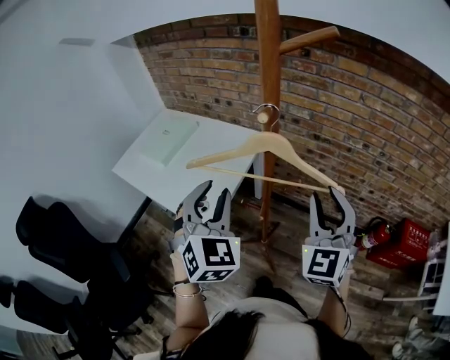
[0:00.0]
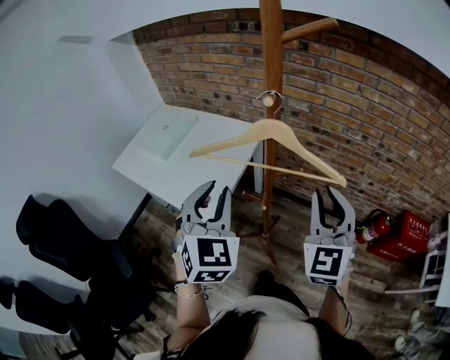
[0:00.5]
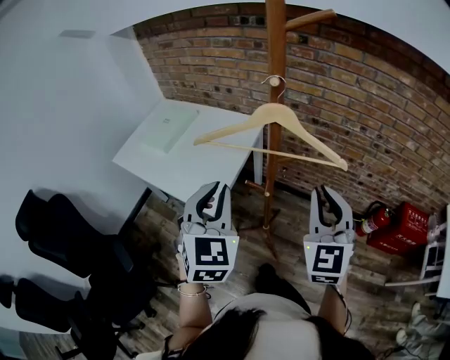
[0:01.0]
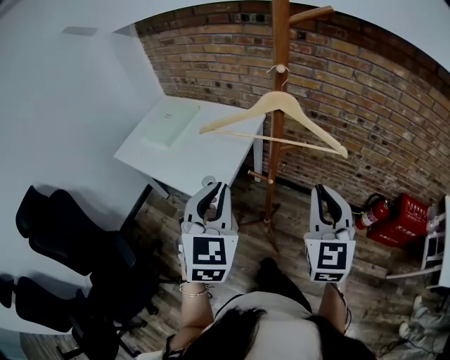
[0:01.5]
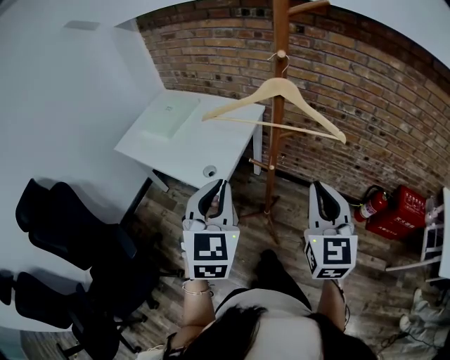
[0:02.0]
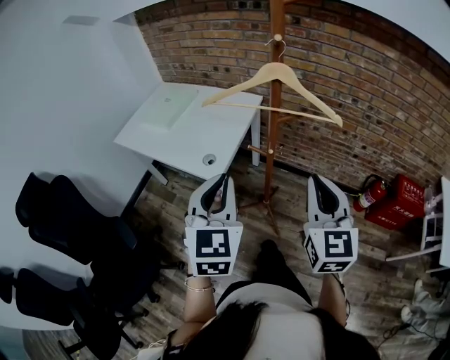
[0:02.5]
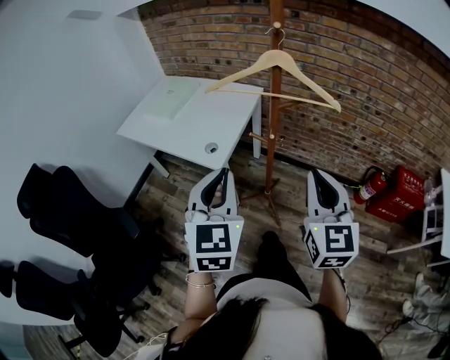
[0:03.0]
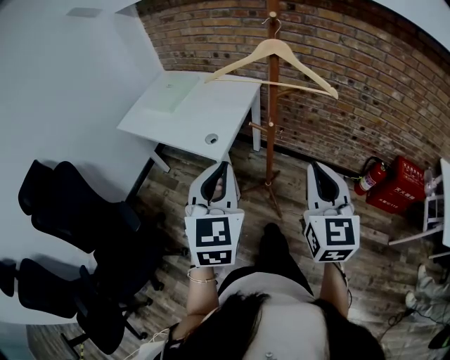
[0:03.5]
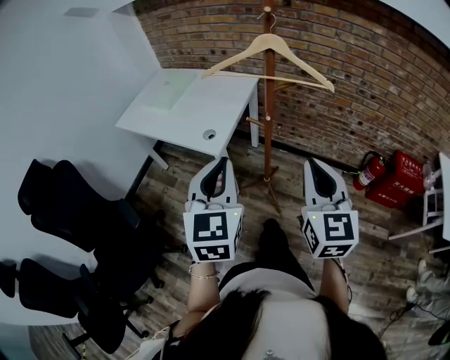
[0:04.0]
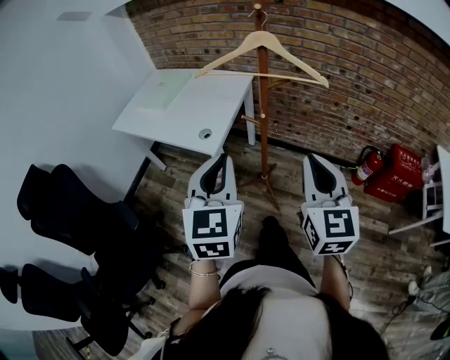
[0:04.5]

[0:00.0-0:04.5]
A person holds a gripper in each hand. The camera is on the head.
0:00.0 to 0:02.0: Both grippers travel together backward, approximately 15 cm. The left gripper turns by approximately 20 degrees, and closes; the right gripper rotates roughly 20 degrees, and closes its fingers.
0:02.0 to 0:04.5: The grippers both shift backward by some 10 cm.

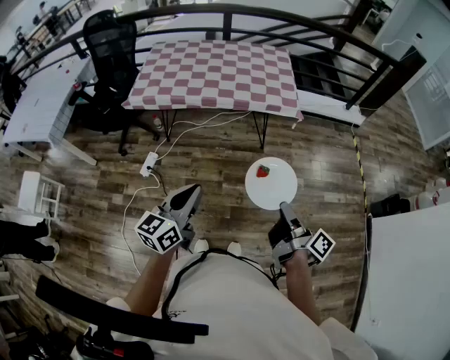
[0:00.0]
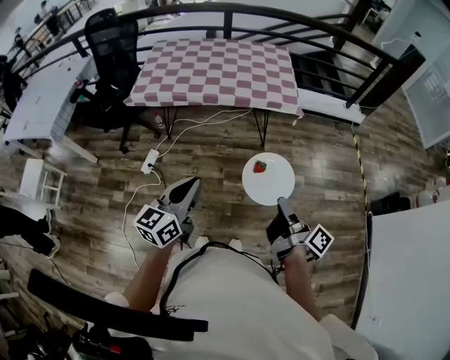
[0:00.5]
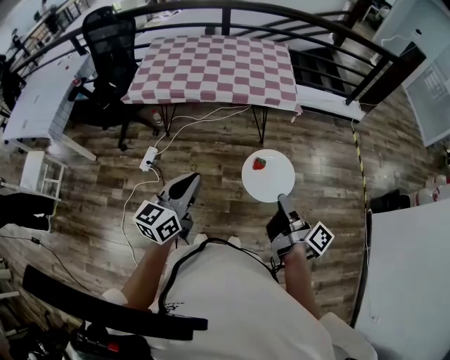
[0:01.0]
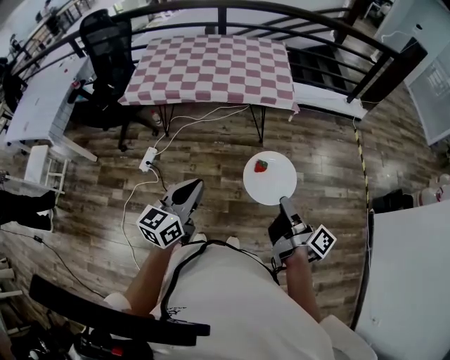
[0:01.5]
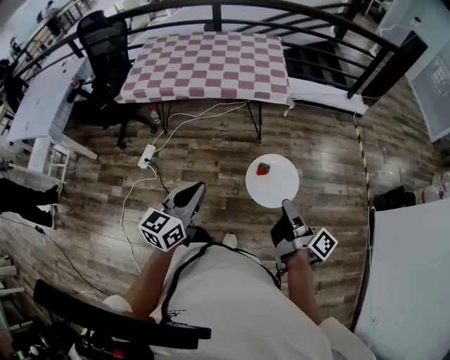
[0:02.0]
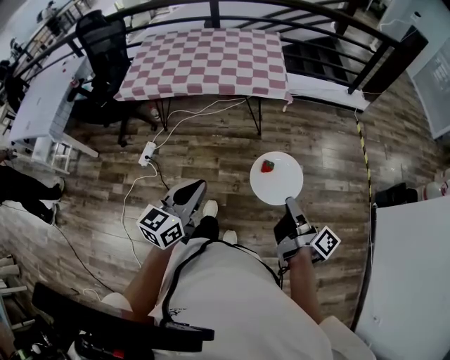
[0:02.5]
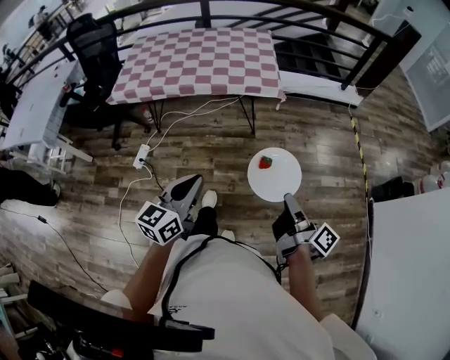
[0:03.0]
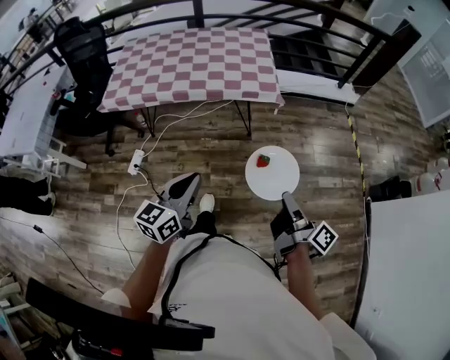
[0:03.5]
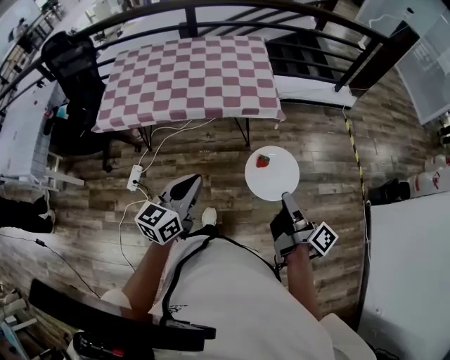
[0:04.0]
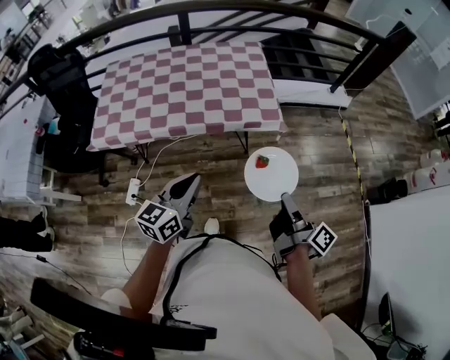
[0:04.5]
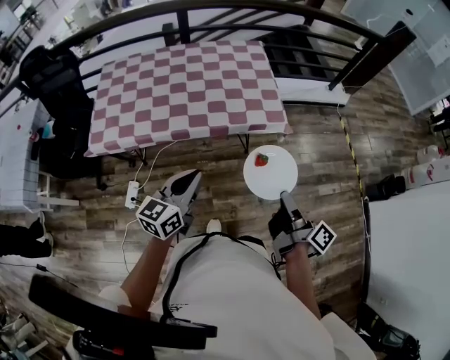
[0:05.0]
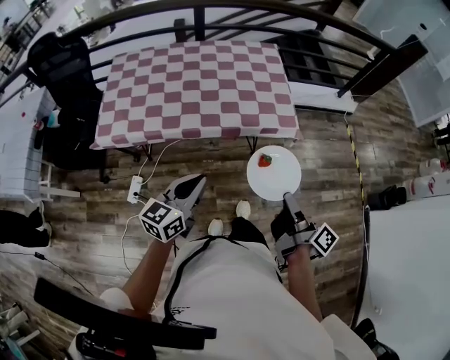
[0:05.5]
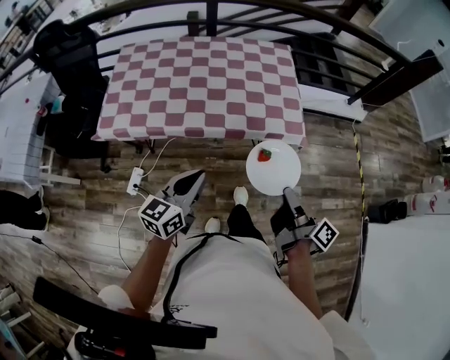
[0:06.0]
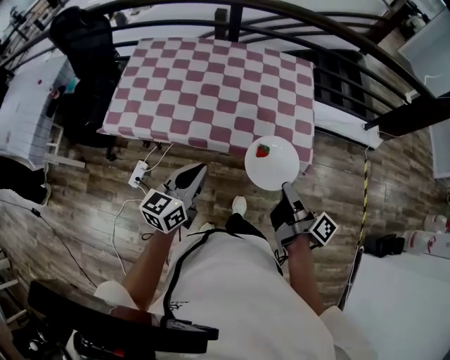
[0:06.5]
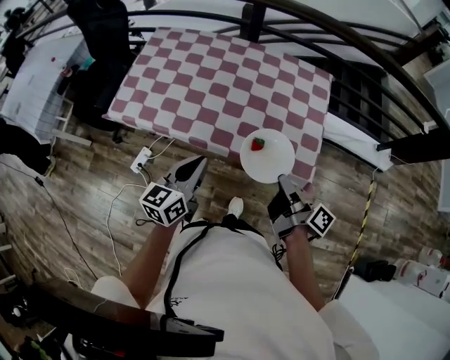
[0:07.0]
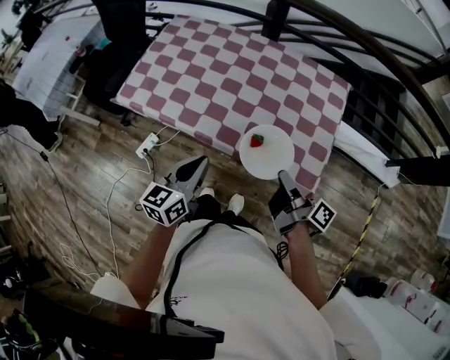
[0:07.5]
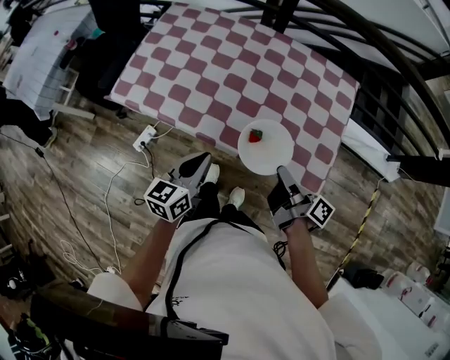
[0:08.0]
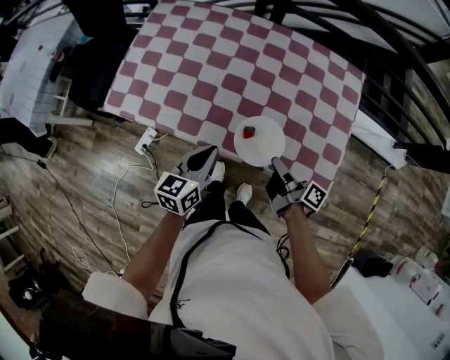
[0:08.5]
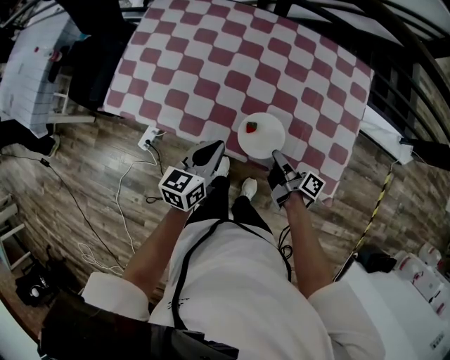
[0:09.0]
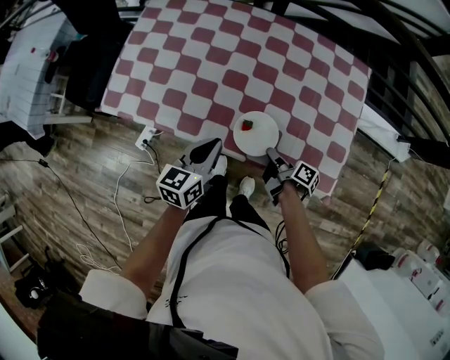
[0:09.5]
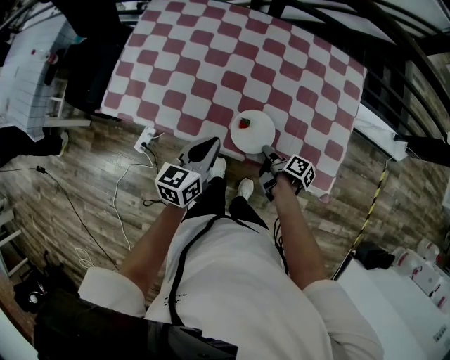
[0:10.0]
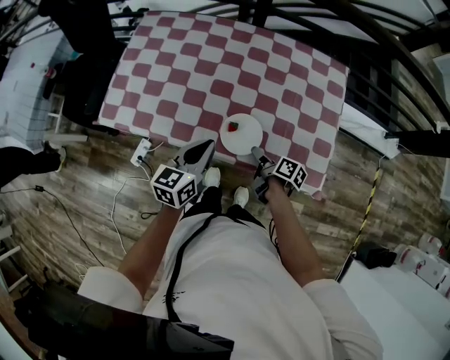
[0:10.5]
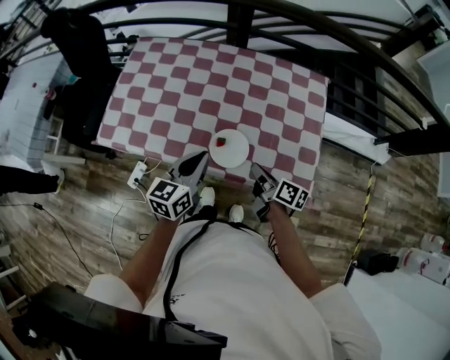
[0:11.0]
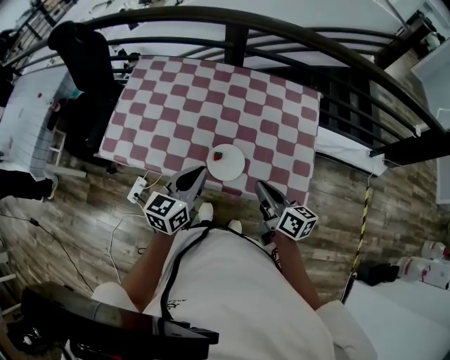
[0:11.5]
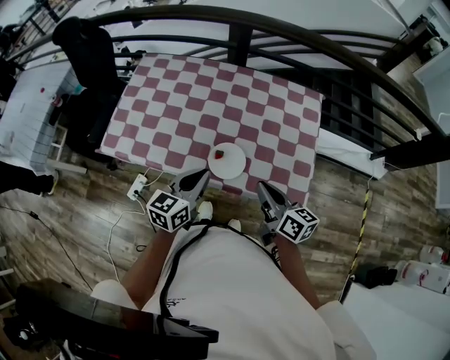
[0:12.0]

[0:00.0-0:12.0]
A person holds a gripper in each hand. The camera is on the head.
0:00.0 to 0:02.0: The left gripper ends up approximately 10 cm from where it was.
0:02.0 to 0:04.0: The left gripper moves approximately 20 cm.
0:04.0 to 0:06.0: The left gripper ends up some 20 cm from where it was.
0:06.0 to 0:08.0: The left gripper shifts by some 20 cm, and rotates approximately 30 degrees.
0:08.0 to 0:10.0: The left gripper changes place by about 10 cm.
0:10.0 to 0:12.0: The left gripper goes about 10 cm upward.

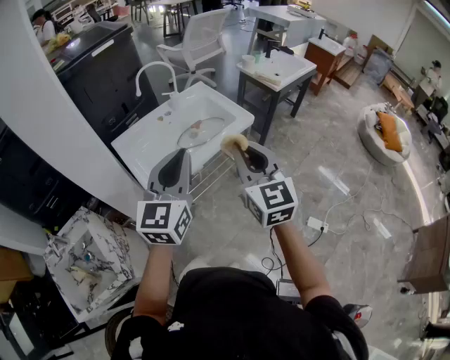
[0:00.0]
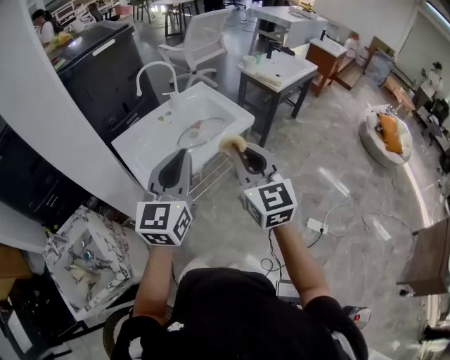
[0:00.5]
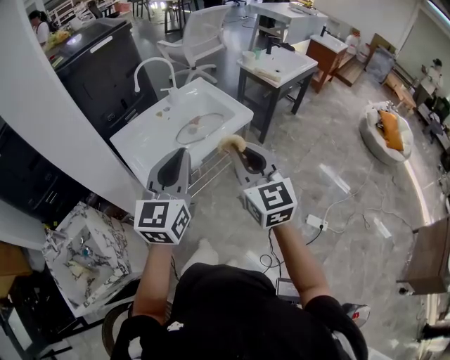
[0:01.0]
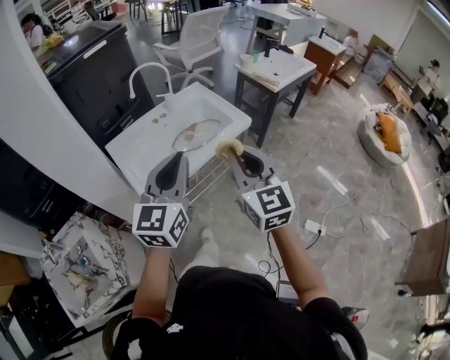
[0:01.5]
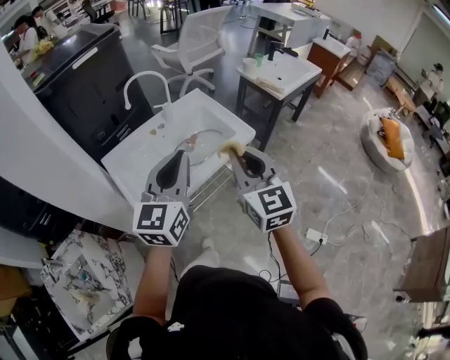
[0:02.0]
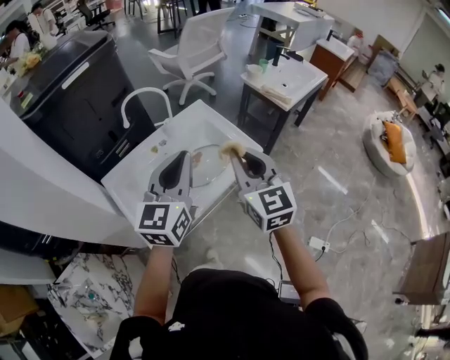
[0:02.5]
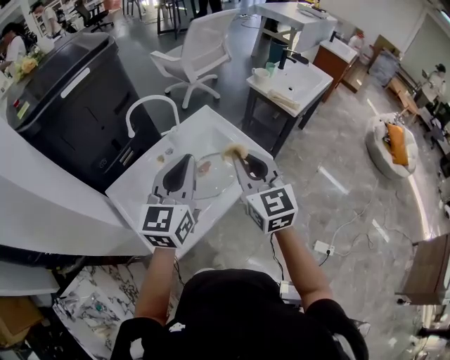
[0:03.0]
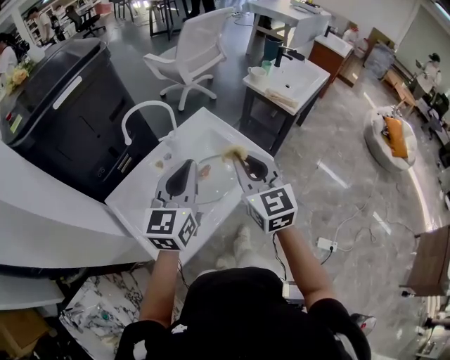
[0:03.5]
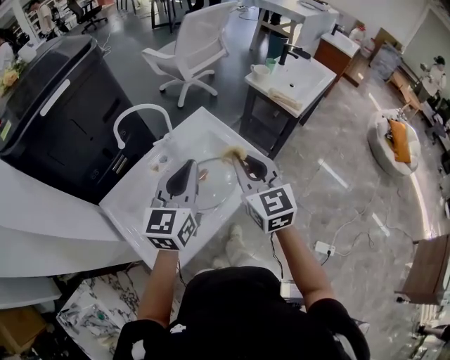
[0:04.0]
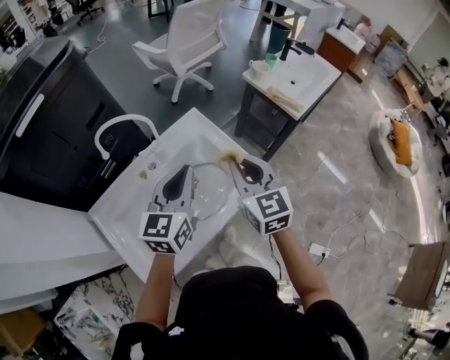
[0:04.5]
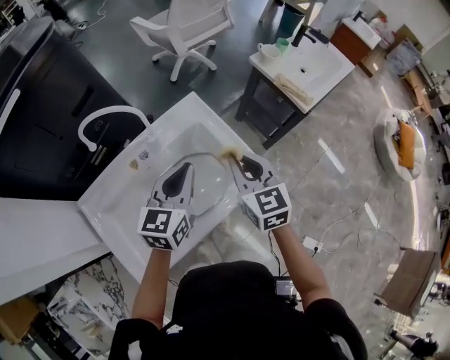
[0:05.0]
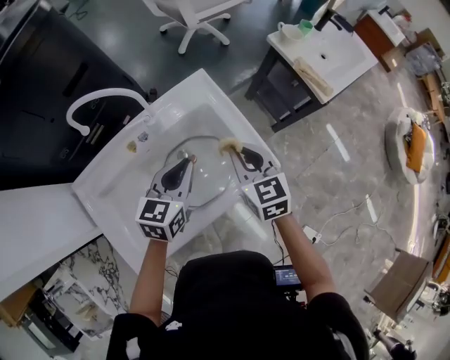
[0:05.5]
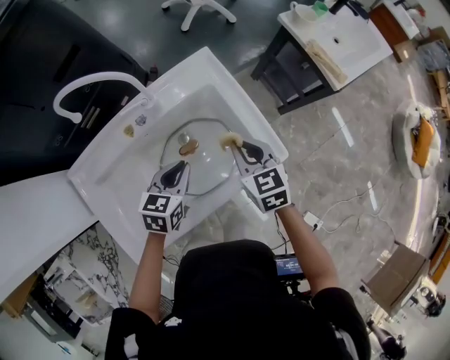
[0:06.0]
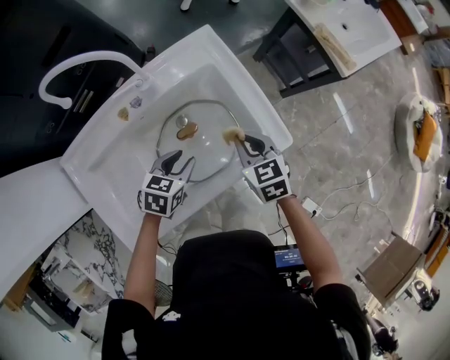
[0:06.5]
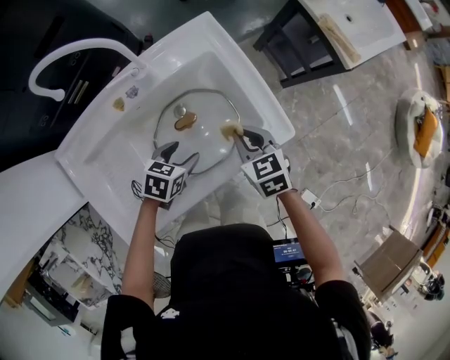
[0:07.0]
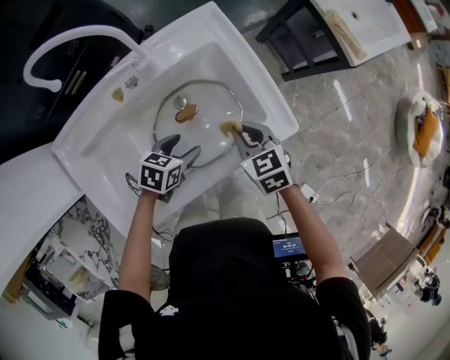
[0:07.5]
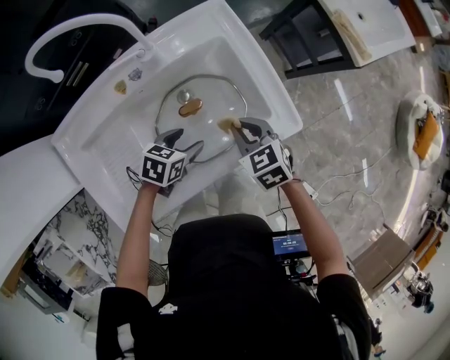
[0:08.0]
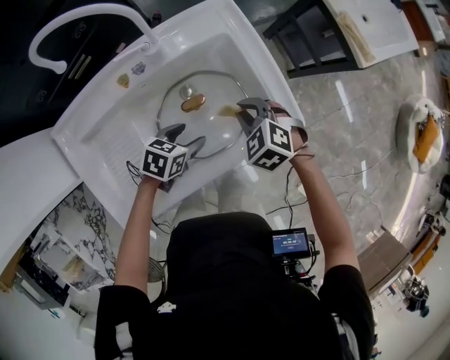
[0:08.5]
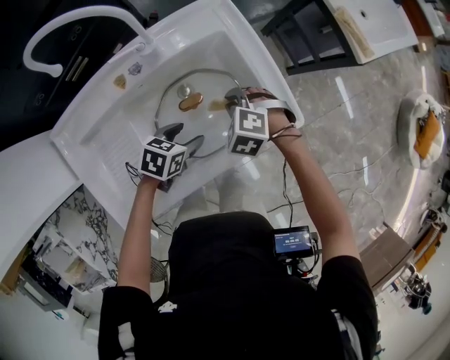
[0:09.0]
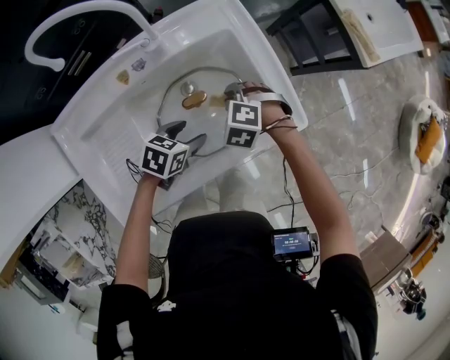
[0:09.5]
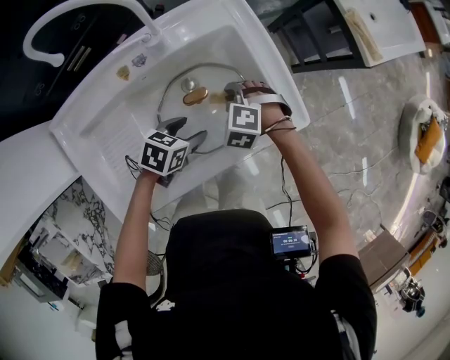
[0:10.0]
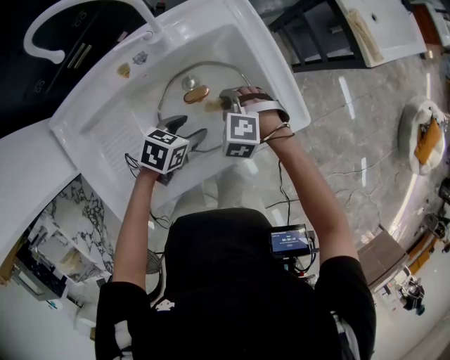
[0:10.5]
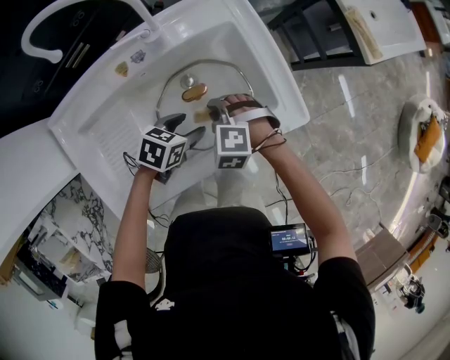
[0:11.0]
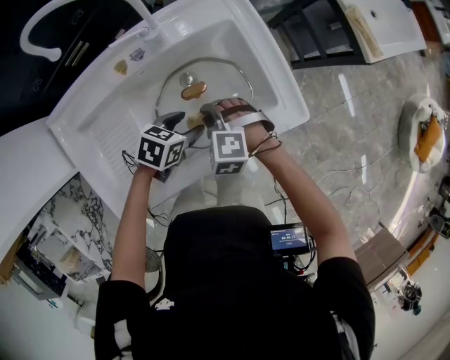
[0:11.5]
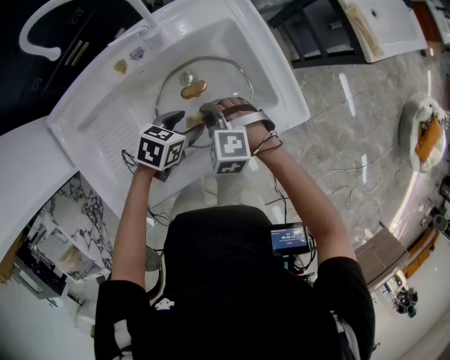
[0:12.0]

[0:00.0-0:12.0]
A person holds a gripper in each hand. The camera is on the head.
0:00.0 to 0:02.0: Both grippers move forward, roughly 15 cm.
0:02.0 to 0:04.0: The grippers both shift forward by roughly 25 cm.
0:04.0 to 0:06.0: The right gripper is displaced downward and forward by about 30 cm, and swivels about 30 degrees, while the left gripper shifts approximately 30 cm downward, and points its fingers roughly 40 degrees further downward.
0:06.0 to 0:08.0: Both grippers move downward, about 10 cm. The right gripper turns by about 20 degrees; the left gripper rotates some 20 degrees, and opens its fingers.
0:08.0 to 0:10.0: The right gripper is displaced downward by some 5 cm, and rotates around the line of its fingers by about 50 degrees, counterclockwise from behind.
0:10.0 to 0:12.0: The right gripper shifts roughly 10 cm backward.
